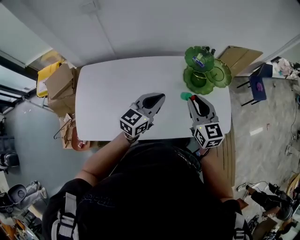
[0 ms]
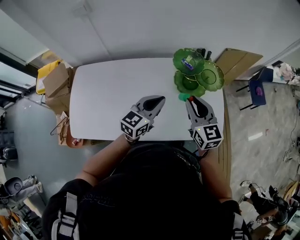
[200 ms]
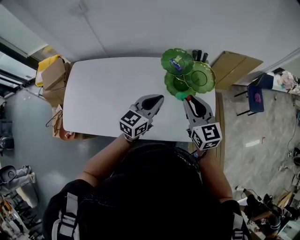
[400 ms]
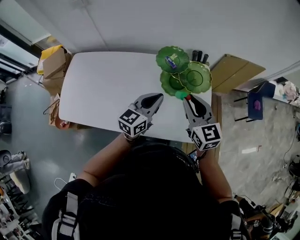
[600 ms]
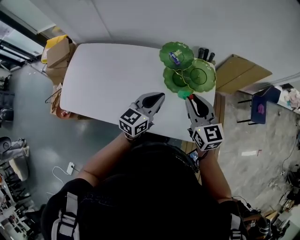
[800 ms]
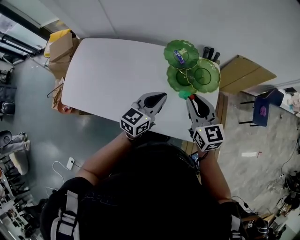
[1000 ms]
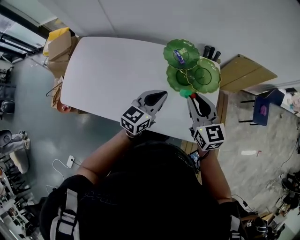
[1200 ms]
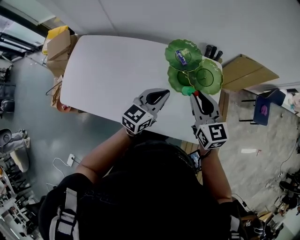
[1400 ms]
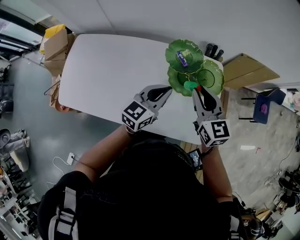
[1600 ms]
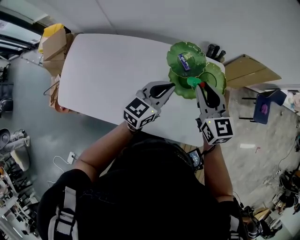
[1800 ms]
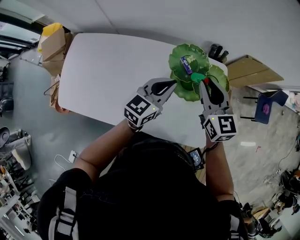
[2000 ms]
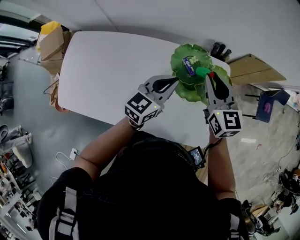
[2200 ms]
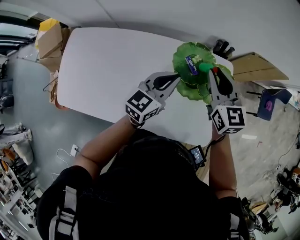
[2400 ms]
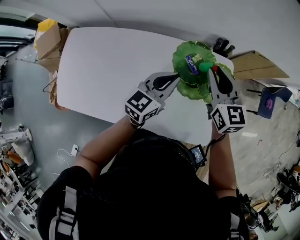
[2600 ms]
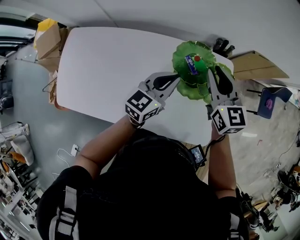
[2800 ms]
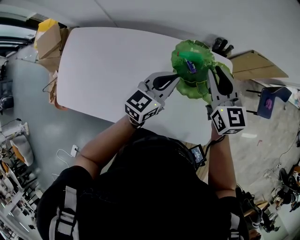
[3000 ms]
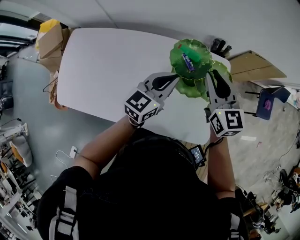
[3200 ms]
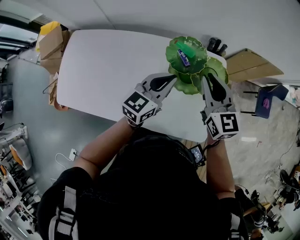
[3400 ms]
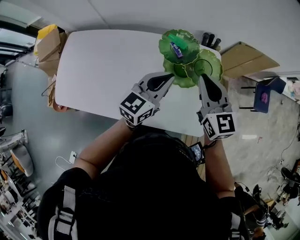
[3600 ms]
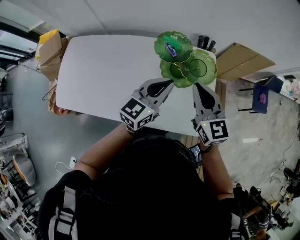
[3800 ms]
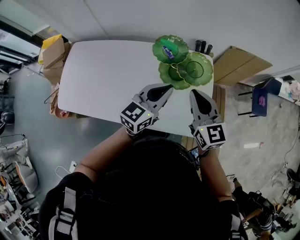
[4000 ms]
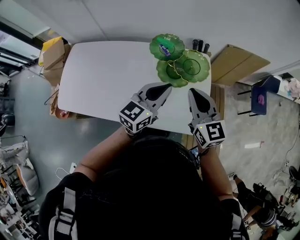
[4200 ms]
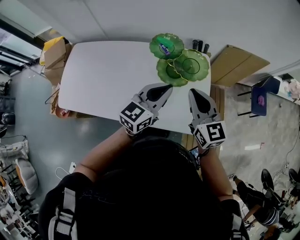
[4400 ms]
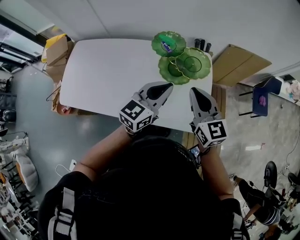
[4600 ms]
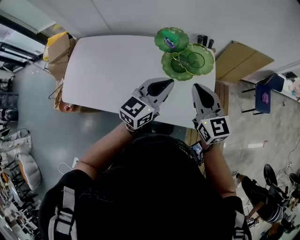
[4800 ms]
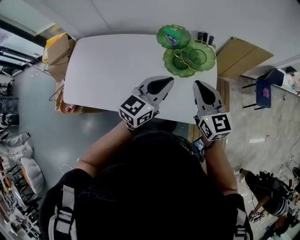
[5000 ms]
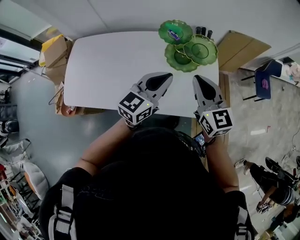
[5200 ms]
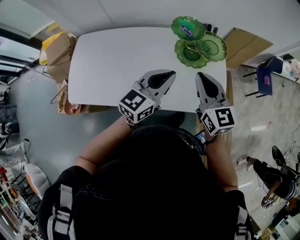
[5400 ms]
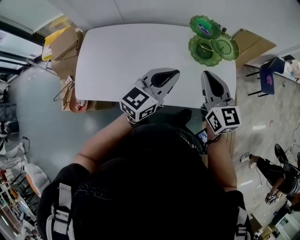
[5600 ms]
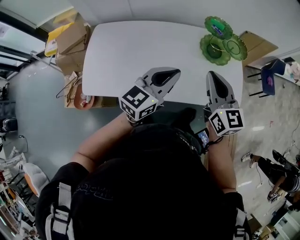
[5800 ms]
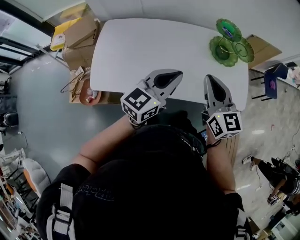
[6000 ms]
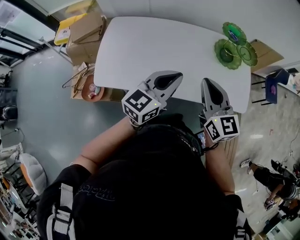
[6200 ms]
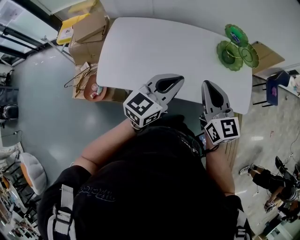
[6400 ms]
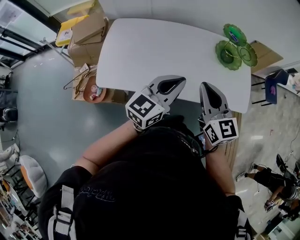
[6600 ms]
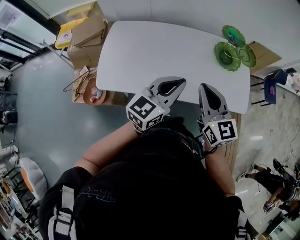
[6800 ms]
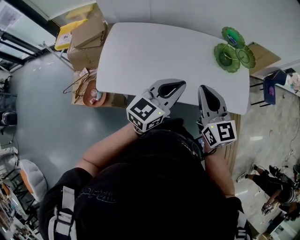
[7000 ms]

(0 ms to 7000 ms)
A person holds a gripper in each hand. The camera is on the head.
0 ms - 1400 ms: The left gripper moves to the right, some 20 cm. Meanwhile the right gripper moves to the right and forward, roughly 20 cm.
1400 ms - 2800 ms: Both grippers move forward, roughly 15 cm.
2800 ms - 4200 ms: The left gripper shifts roughly 20 cm backward, to the right and upward. The right gripper heads backward, covering approximately 20 cm.
4200 ms - 5600 ms: The two grippers go about 20 cm to the left and backward.
5600 ms - 7000 ms: Both grippers travel together to the left and backward, about 20 cm.

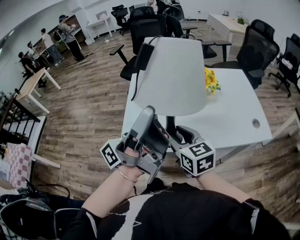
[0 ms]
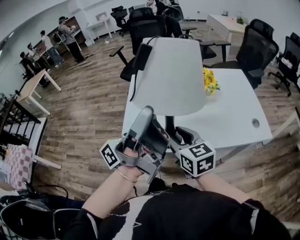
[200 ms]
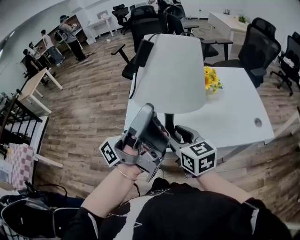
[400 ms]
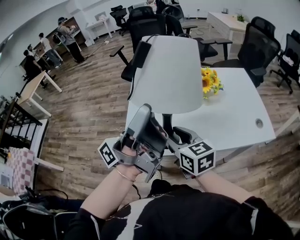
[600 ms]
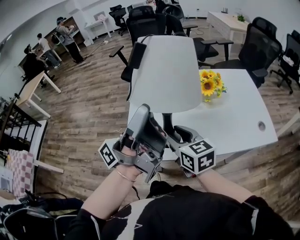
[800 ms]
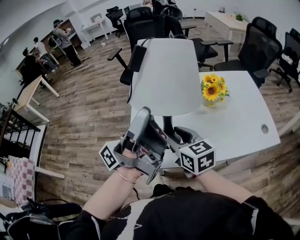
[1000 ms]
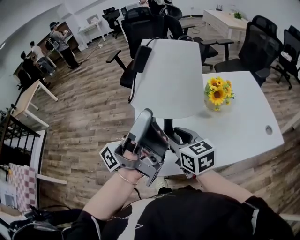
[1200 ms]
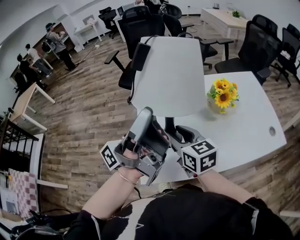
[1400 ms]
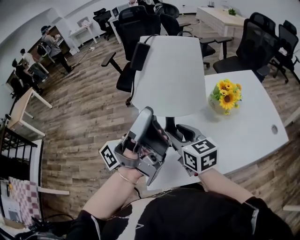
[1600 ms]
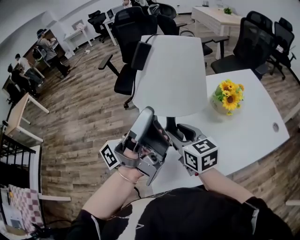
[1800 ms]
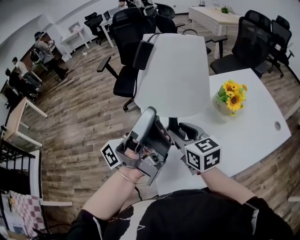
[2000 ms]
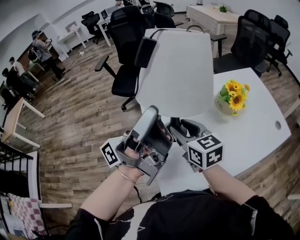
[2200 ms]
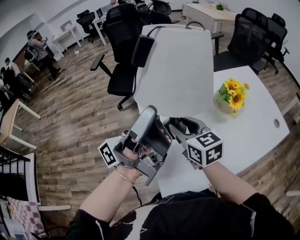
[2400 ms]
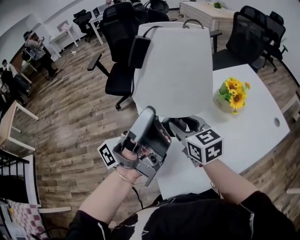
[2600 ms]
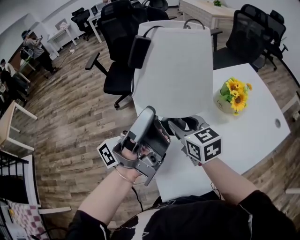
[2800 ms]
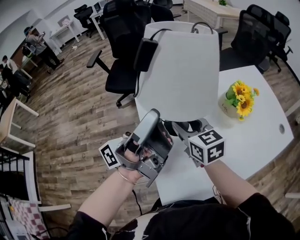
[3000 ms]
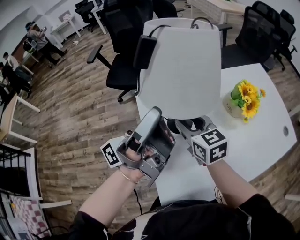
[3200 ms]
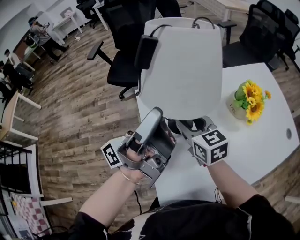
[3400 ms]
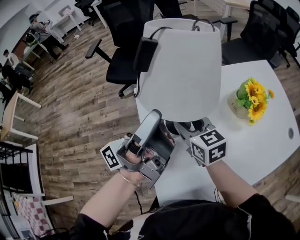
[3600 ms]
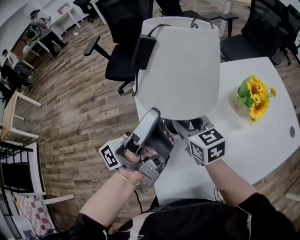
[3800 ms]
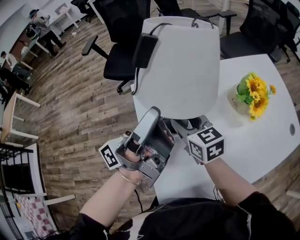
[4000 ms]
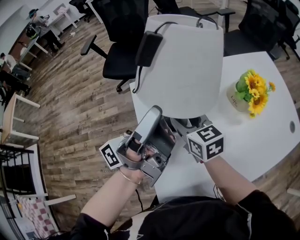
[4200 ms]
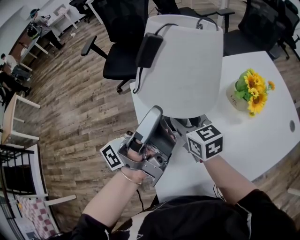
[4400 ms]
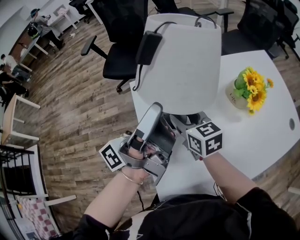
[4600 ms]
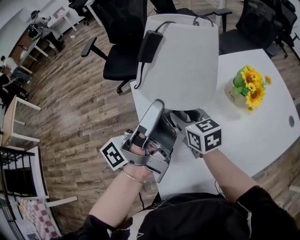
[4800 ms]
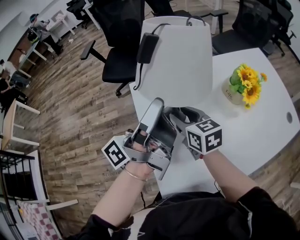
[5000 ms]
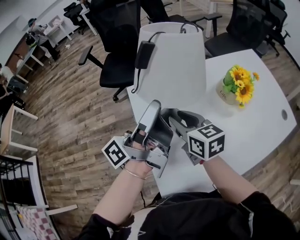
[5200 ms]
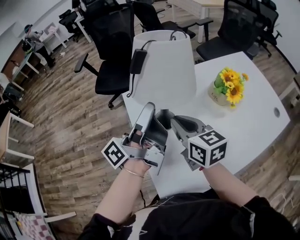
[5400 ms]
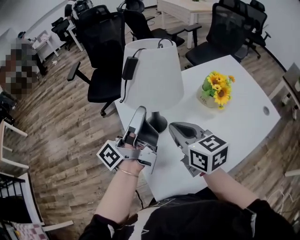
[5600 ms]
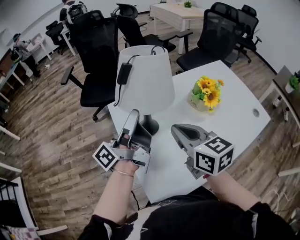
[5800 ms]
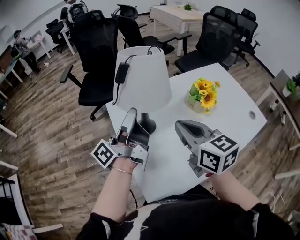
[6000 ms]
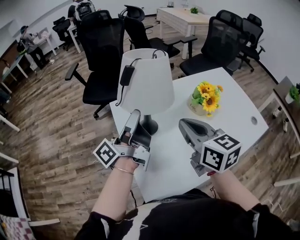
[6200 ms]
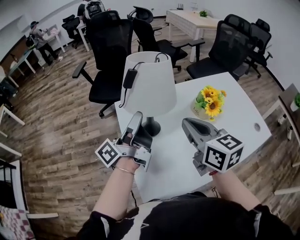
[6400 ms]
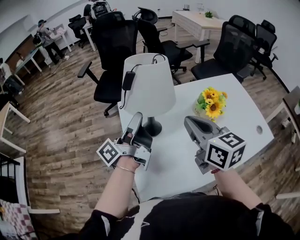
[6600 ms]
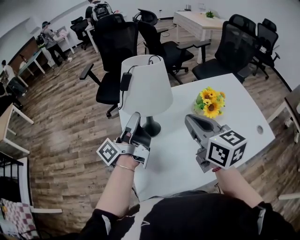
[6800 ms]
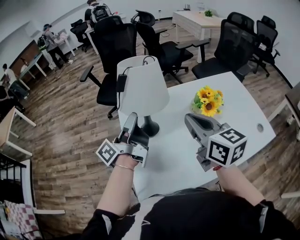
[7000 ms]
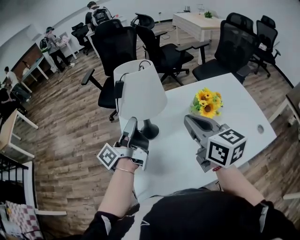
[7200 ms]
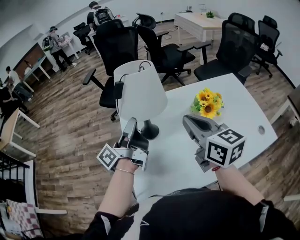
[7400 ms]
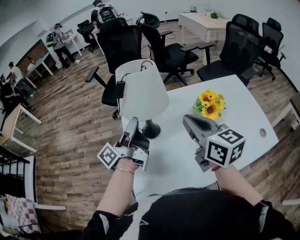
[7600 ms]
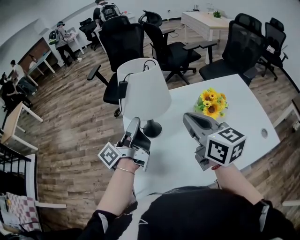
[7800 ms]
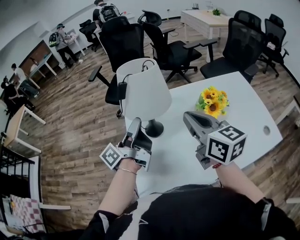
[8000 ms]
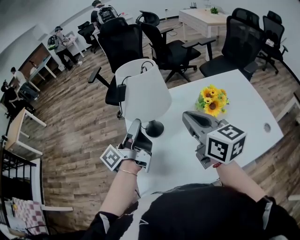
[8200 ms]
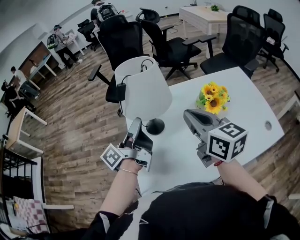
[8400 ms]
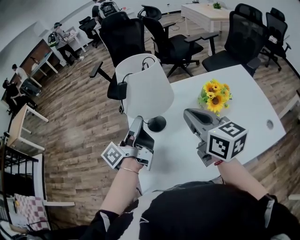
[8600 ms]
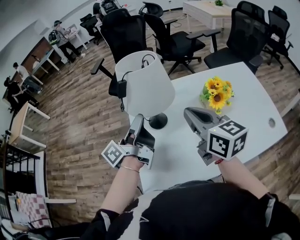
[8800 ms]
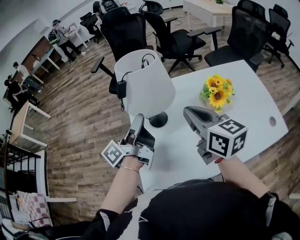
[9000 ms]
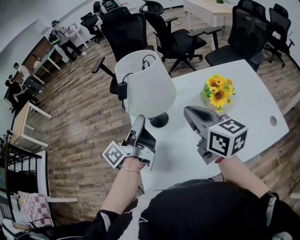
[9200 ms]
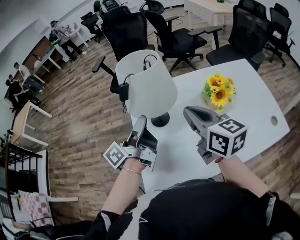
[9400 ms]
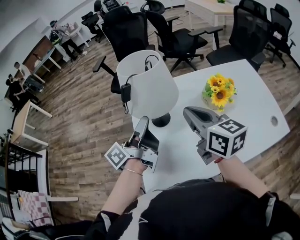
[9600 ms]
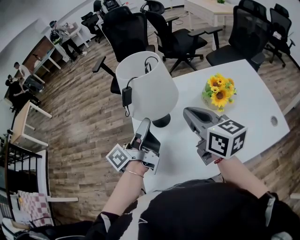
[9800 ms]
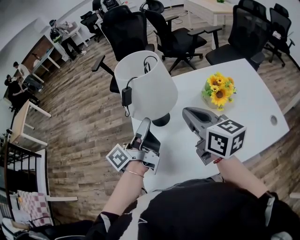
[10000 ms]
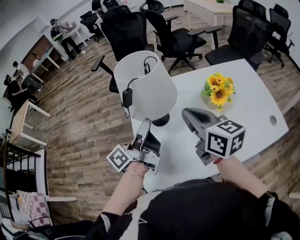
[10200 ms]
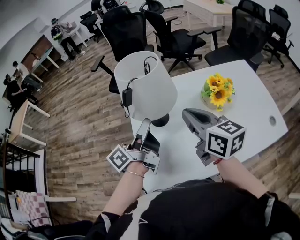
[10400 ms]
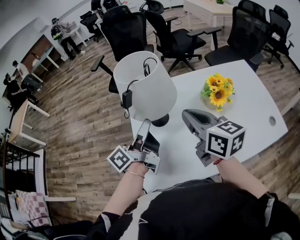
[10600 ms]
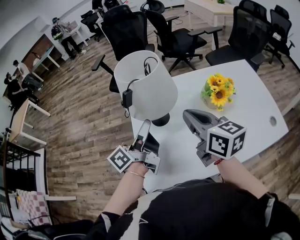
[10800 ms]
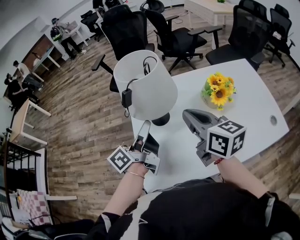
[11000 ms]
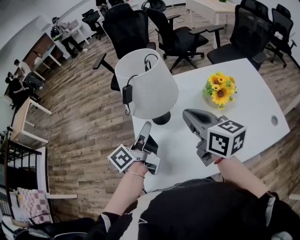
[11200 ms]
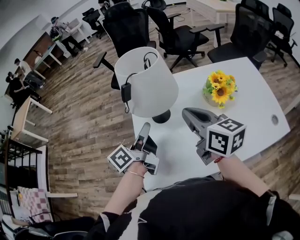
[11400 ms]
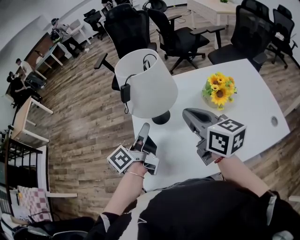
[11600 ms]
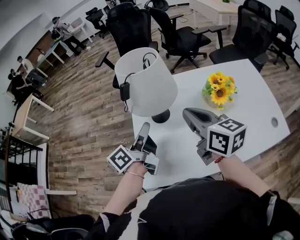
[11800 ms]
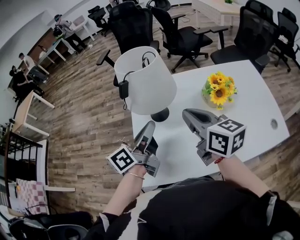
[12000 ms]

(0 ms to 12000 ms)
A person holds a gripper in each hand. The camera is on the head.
0 ms - 1600 ms: Both grippers travel together forward and to the left, roughly 20 cm.
1600 ms - 3000 ms: The right gripper travels forward by some 10 cm. The left gripper heads forward and to the left, covering about 10 cm.
3000 ms - 4400 ms: The two grippers go approximately 5 cm downward.
4400 ms - 6000 ms: The right gripper is displaced upward, backward and to the right by about 20 cm, and closes.
6000 ms - 7600 ms: The right gripper moves to the right, about 5 cm.
7600 ms - 10400 ms: There are only small adjustments of the grippers.
10400 ms - 12000 ms: The left gripper turns by about 20 degrees.

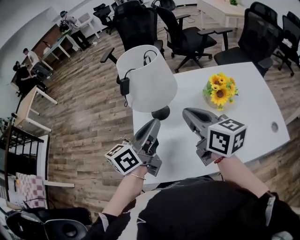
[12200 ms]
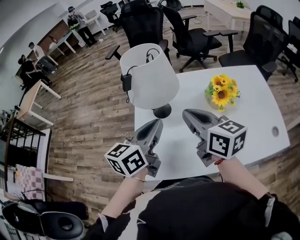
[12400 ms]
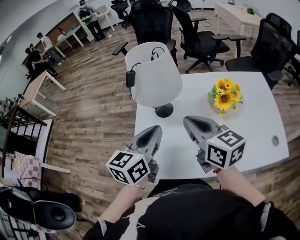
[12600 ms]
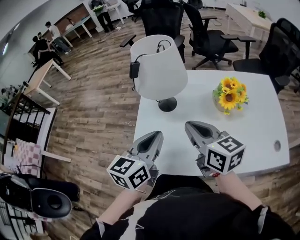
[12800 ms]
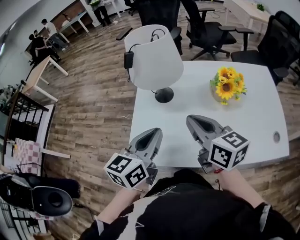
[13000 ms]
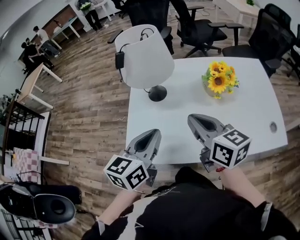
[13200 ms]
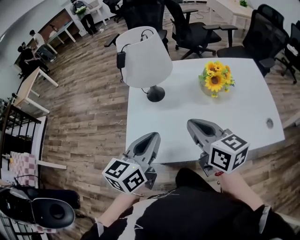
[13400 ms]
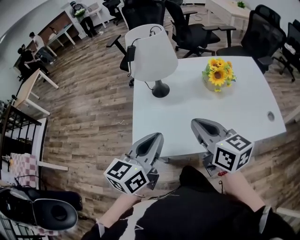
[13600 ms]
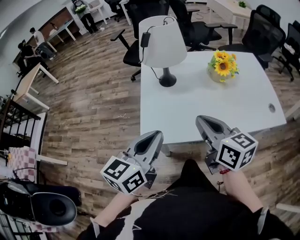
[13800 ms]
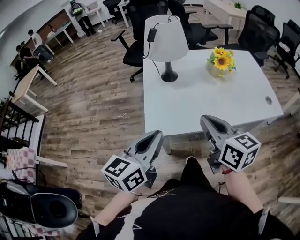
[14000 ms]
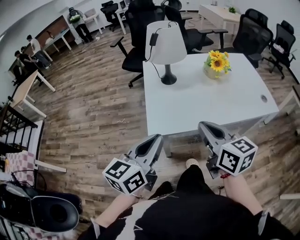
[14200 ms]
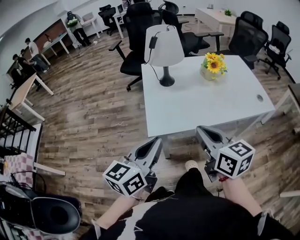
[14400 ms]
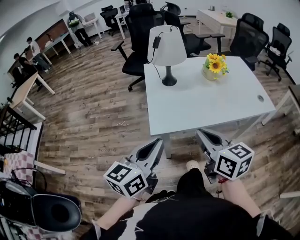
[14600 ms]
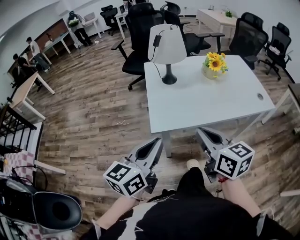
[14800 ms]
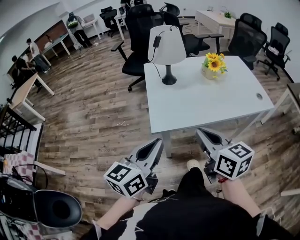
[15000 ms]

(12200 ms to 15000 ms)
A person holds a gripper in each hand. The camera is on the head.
12200 ms - 13600 ms: Both grippers move backward, about 15 cm. The left gripper turns by about 20 degrees.
13600 ms - 15000 ms: The two grippers go approximately 20 cm backward and to the left.

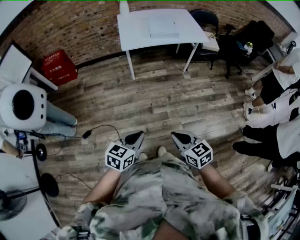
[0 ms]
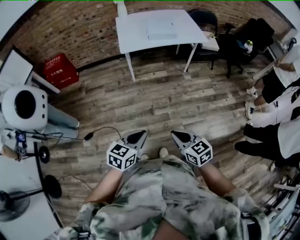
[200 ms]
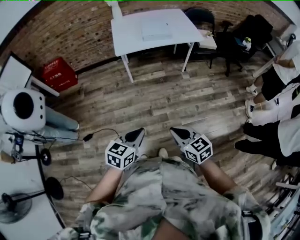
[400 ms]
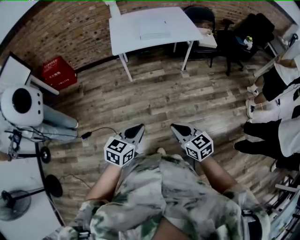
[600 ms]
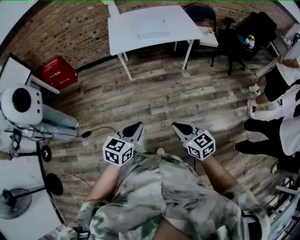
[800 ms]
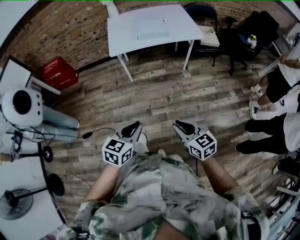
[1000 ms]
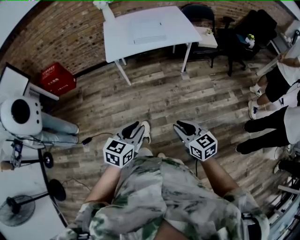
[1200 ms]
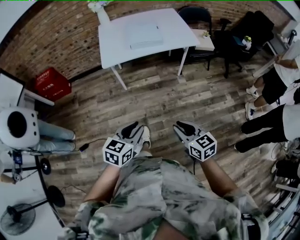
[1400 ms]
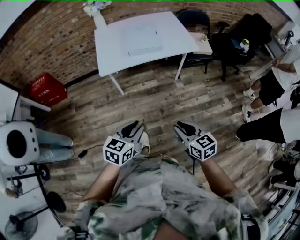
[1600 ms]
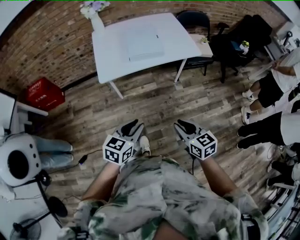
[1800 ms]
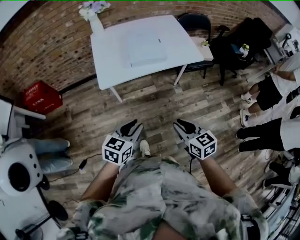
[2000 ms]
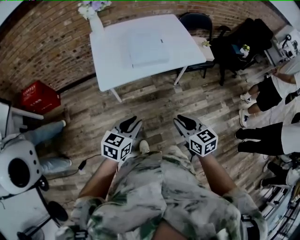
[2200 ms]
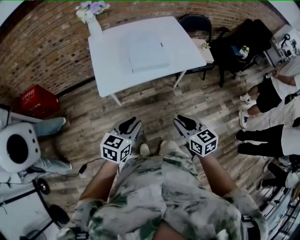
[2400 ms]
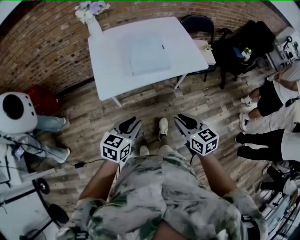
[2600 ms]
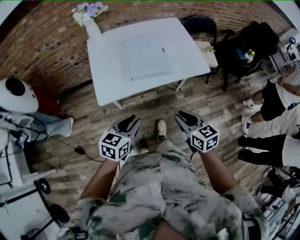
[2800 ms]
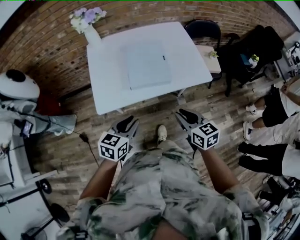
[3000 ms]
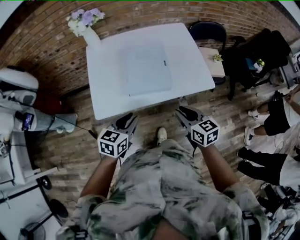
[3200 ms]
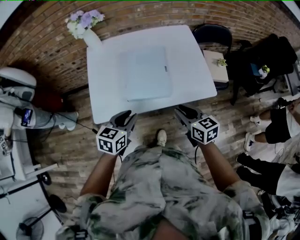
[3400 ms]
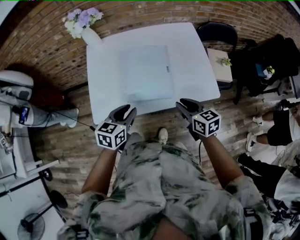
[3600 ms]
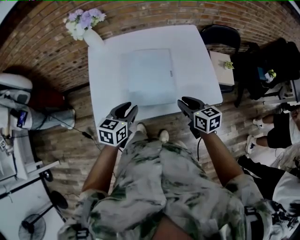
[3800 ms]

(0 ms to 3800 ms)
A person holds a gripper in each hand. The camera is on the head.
0 ms - 1200 ms: The two grippers go roughly 20 cm to the right and forward.
1200 ms - 2600 ms: The grippers both shift forward by approximately 40 cm.
2600 ms - 3800 ms: Both grippers move forward, approximately 35 cm.
